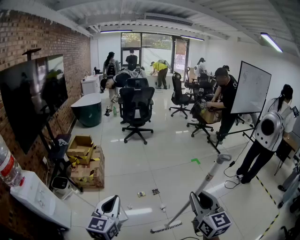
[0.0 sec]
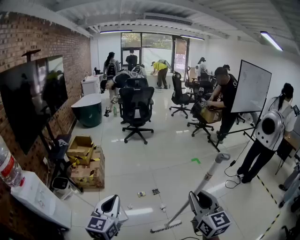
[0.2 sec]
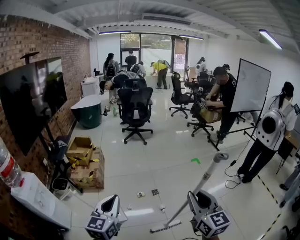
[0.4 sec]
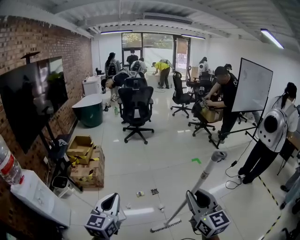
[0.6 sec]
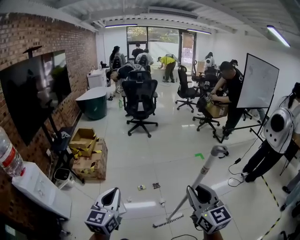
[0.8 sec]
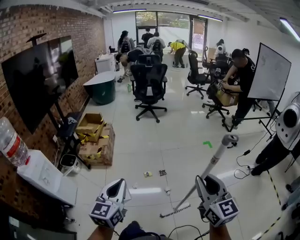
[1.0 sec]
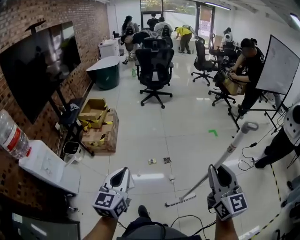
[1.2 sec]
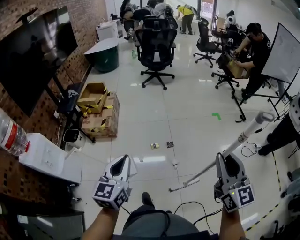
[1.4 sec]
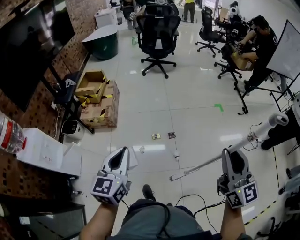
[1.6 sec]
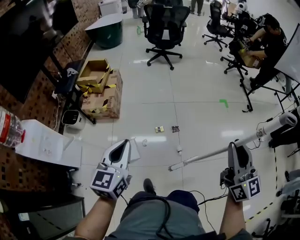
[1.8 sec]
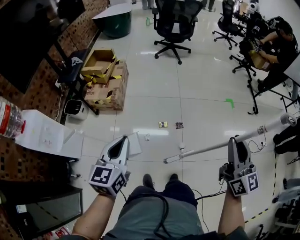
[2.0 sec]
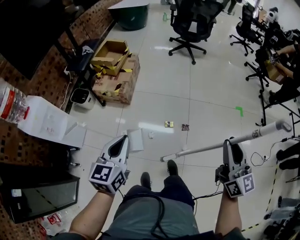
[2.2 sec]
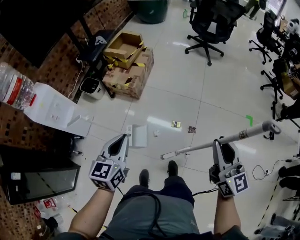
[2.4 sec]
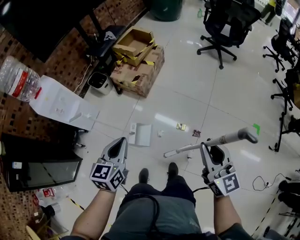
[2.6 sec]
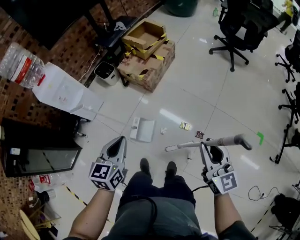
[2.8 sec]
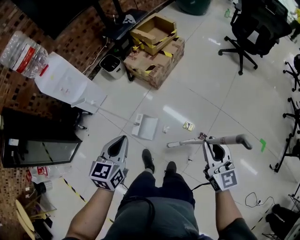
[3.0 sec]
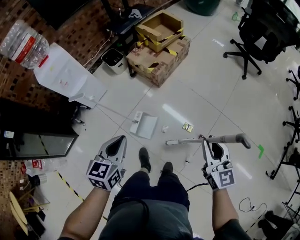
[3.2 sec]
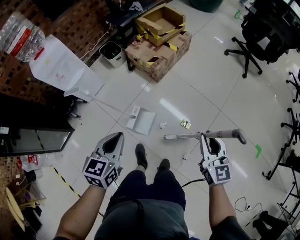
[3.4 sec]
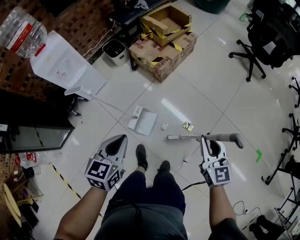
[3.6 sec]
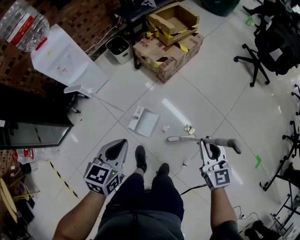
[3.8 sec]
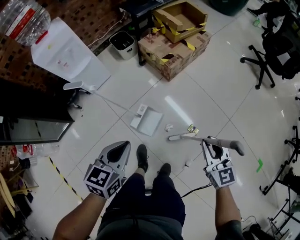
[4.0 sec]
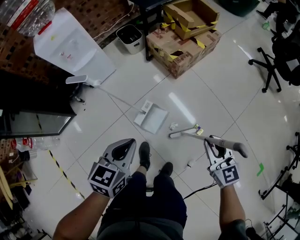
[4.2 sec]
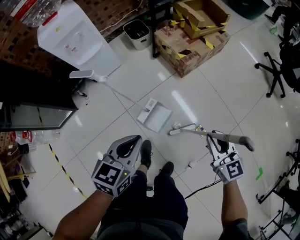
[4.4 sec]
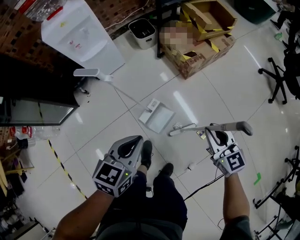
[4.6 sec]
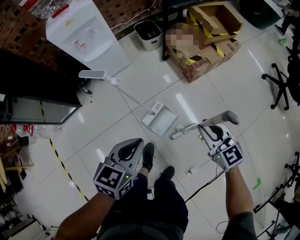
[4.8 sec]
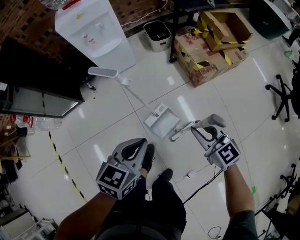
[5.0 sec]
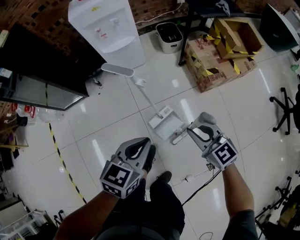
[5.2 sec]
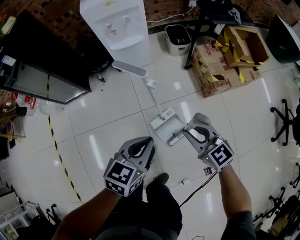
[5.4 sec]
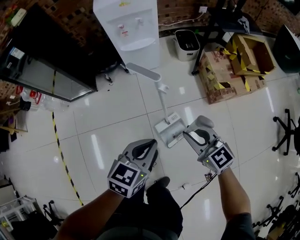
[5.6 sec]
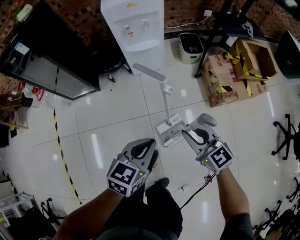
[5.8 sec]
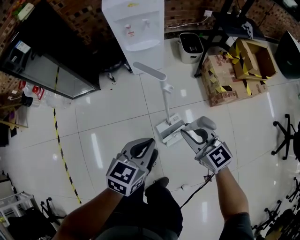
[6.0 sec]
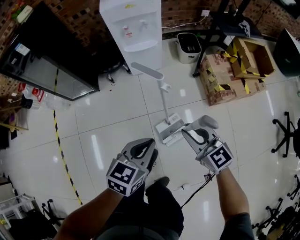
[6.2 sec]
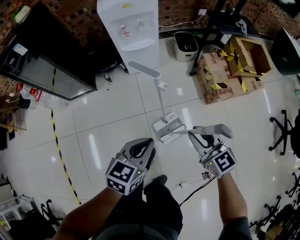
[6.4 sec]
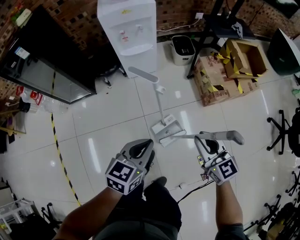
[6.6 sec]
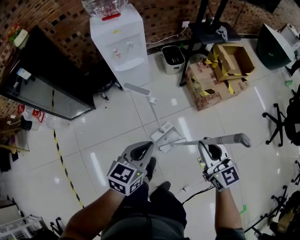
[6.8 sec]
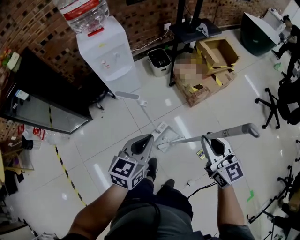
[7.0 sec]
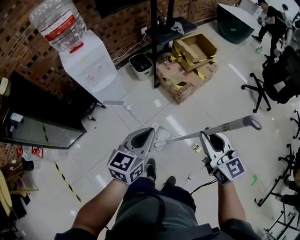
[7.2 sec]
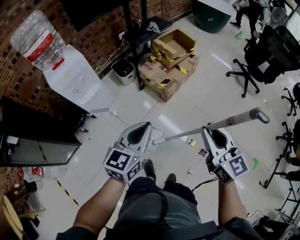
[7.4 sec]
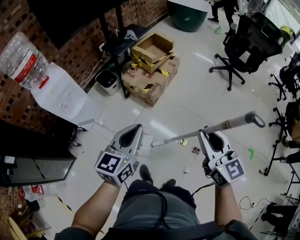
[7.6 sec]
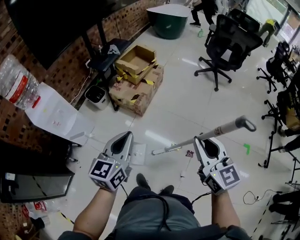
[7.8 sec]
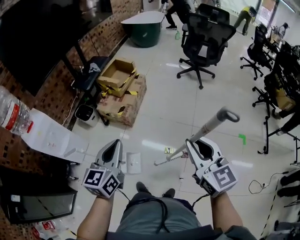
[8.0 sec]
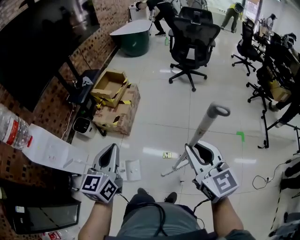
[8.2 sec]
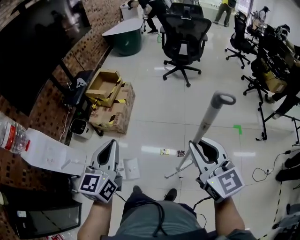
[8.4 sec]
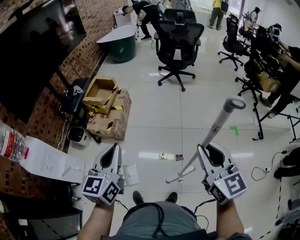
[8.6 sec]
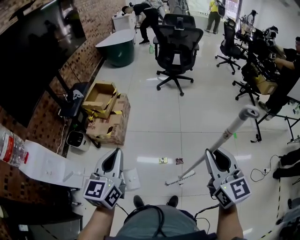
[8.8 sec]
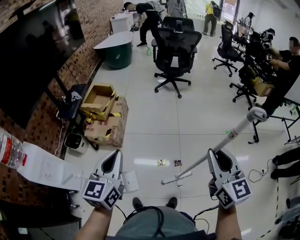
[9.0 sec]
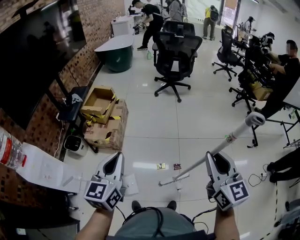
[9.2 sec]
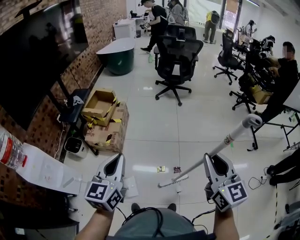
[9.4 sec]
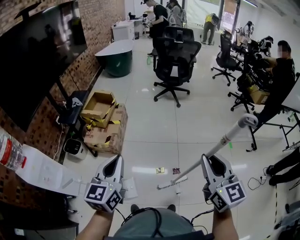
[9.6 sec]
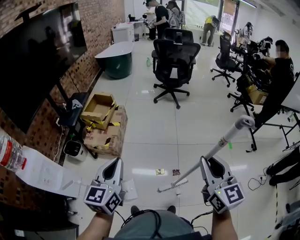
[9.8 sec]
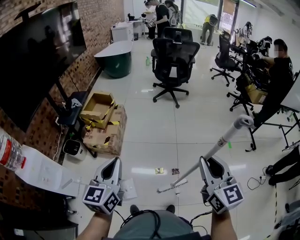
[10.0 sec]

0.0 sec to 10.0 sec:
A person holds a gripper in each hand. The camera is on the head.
0.0 sec to 1.4 sec: The right gripper is displaced forward and to the right by some 15 cm, while the left gripper is displaced forward, downward and to the right by about 15 cm.
1.4 sec to 2.8 sec: The right gripper moves roughly 60 cm, and swivels approximately 50 degrees; the left gripper ends up approximately 35 cm from where it was, and changes its angle by about 40 degrees.
2.8 sec to 4.2 sec: The left gripper is displaced downward, to the left and forward by some 25 cm. Meanwhile the right gripper moves downward, forward and to the left, some 35 cm, and rotates some 30 degrees.
4.2 sec to 5.8 sec: The right gripper changes place by some 40 cm, and turns by about 50 degrees. The left gripper moves about 20 cm, and turns by roughly 20 degrees.
5.8 sec to 7.2 sec: Both grippers travel together upward, some 30 cm. The left gripper changes its angle by approximately 30 degrees; the right gripper changes its angle by some 50 degrees.
7.2 sec to 8.6 sec: The right gripper changes place by roughly 50 cm, and turns by approximately 50 degrees; the left gripper ends up approximately 40 cm from where it was, and swivels about 30 degrees.
8.6 sec to 10.0 sec: The right gripper moves about 5 cm; the left gripper heads to the left, covering roughly 5 cm.

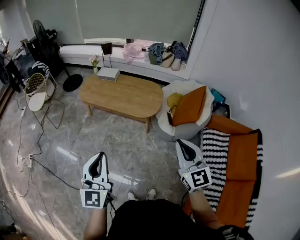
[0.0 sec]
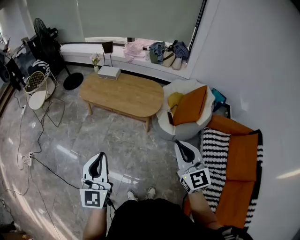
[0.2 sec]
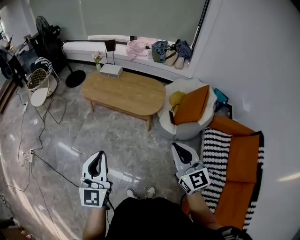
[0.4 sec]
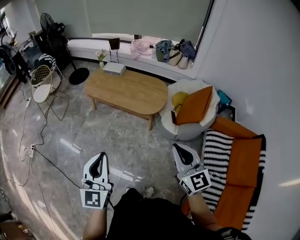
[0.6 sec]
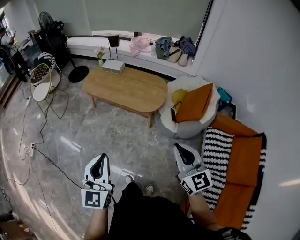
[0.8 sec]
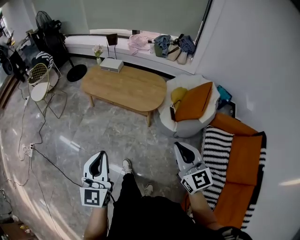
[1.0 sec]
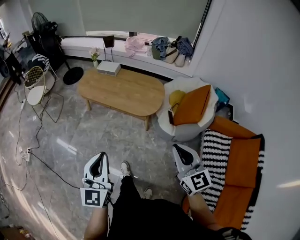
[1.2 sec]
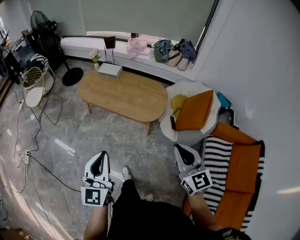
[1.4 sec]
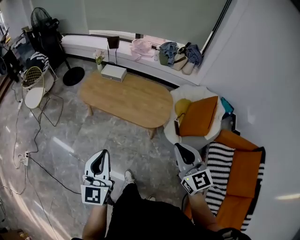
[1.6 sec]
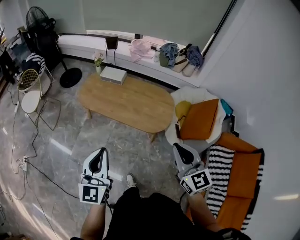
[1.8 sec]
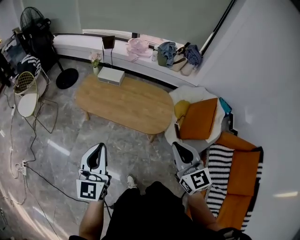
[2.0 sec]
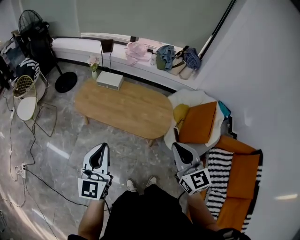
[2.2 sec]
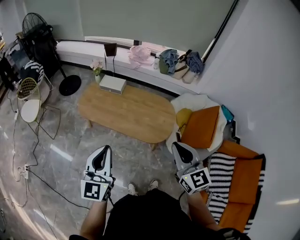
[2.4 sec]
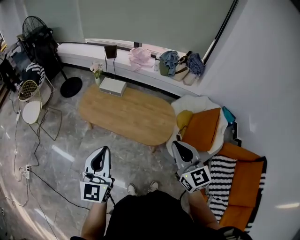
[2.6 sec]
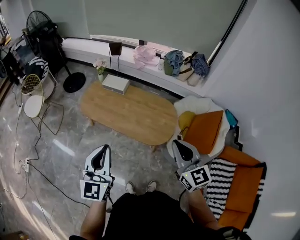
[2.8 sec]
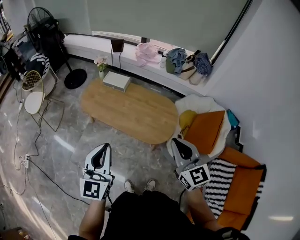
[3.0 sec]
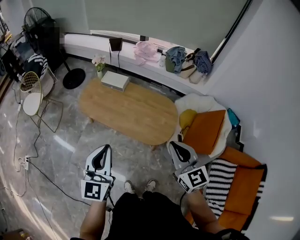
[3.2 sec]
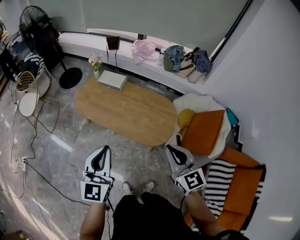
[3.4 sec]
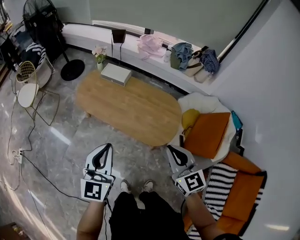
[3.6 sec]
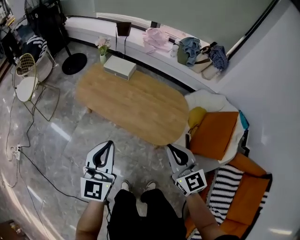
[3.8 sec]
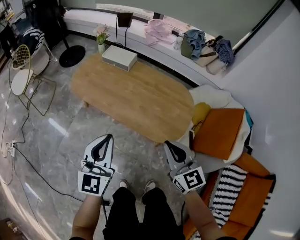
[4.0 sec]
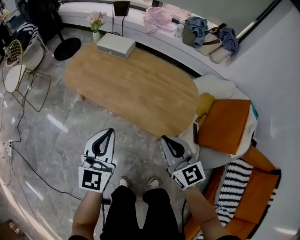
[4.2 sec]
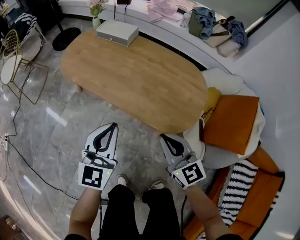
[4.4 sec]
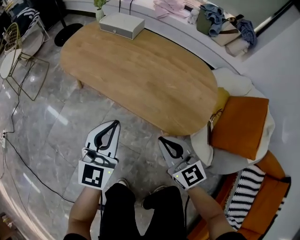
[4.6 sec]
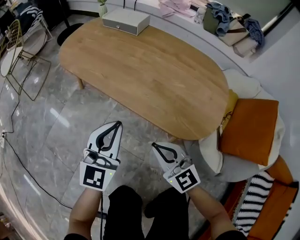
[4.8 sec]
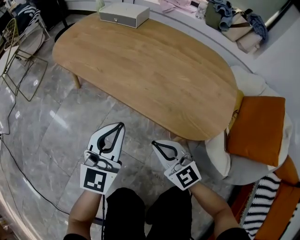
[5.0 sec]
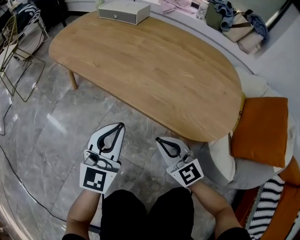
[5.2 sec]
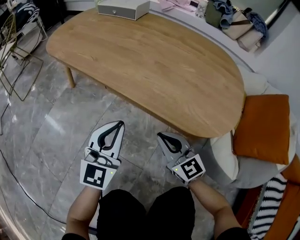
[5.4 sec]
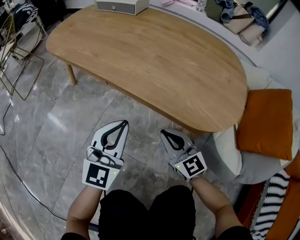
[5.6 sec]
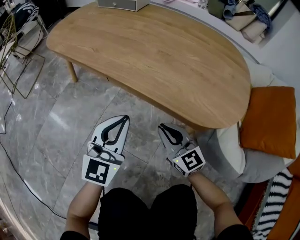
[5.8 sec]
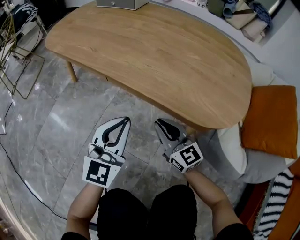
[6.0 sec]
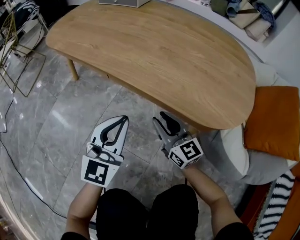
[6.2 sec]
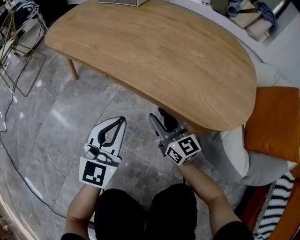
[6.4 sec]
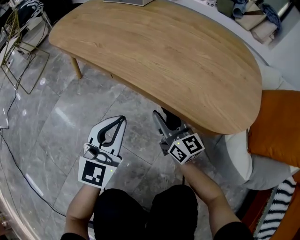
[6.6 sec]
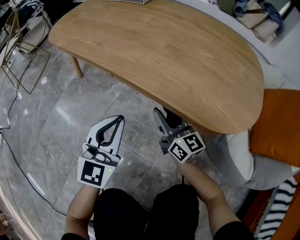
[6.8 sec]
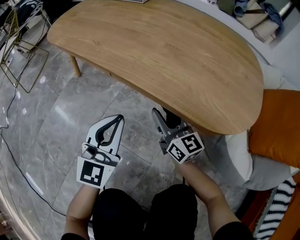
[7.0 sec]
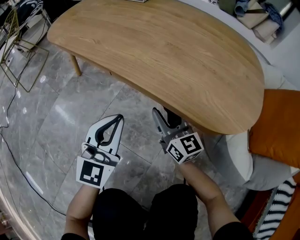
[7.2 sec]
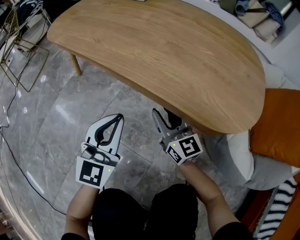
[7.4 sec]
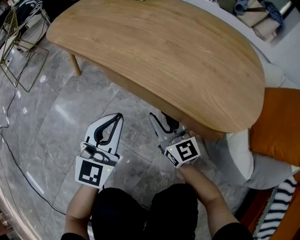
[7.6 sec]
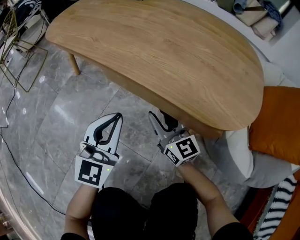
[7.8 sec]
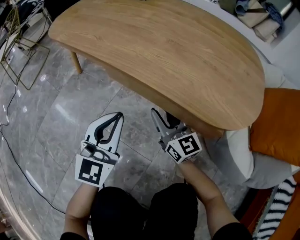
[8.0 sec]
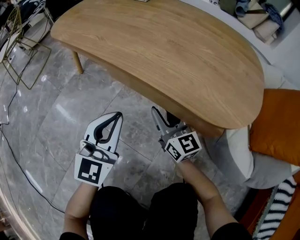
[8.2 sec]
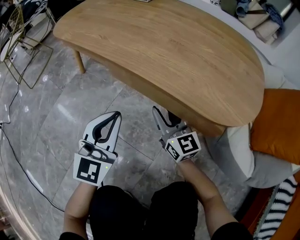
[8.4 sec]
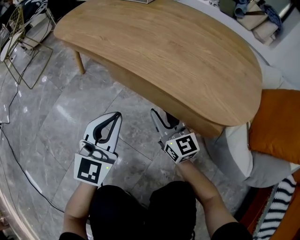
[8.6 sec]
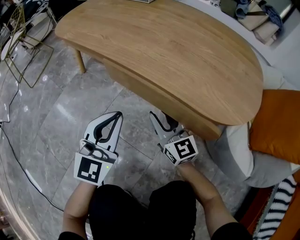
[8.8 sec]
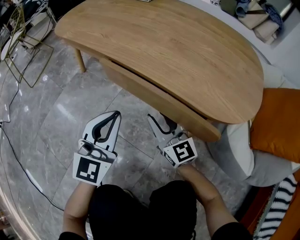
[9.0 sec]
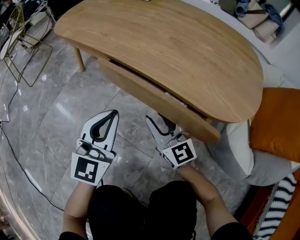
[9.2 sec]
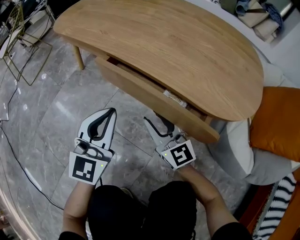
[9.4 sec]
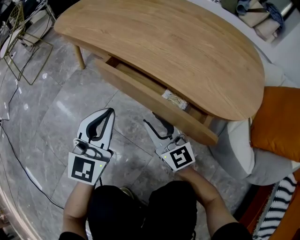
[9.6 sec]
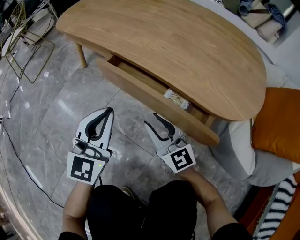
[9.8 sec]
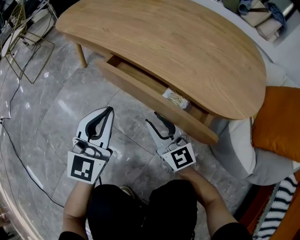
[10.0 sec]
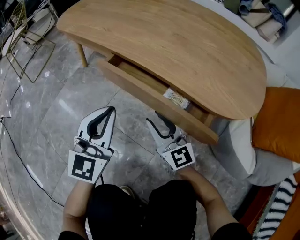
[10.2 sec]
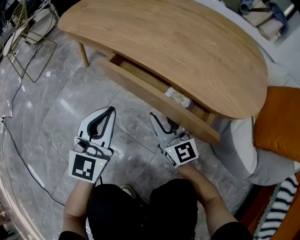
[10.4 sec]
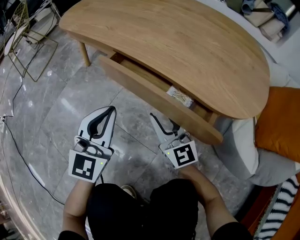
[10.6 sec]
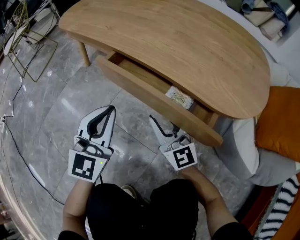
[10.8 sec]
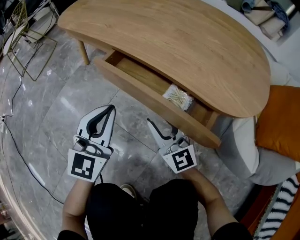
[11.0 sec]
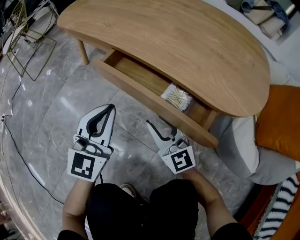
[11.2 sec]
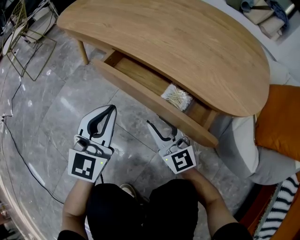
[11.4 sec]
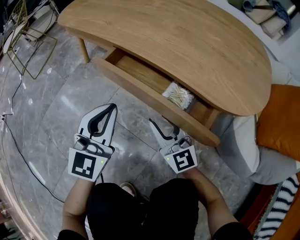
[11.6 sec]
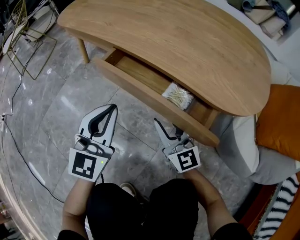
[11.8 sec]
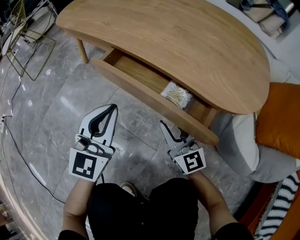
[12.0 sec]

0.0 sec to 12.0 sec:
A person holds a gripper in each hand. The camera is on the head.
0.0 sec to 1.6 sec: Both grippers travel together forward, about 15 cm.
1.6 sec to 3.0 sec: Both grippers travel together forward, roughly 15 cm.
3.0 sec to 4.4 sec: The two grippers go roughly 40 cm downward.
4.4 sec to 6.0 sec: The two grippers go some 30 cm downward.
6.0 sec to 7.6 sec: The right gripper opens.
7.6 sec to 9.0 sec: There are only small adjustments of the grippers.
9.0 sec to 12.0 sec: The grippers make only small movements.

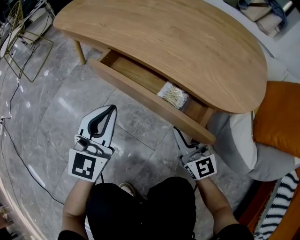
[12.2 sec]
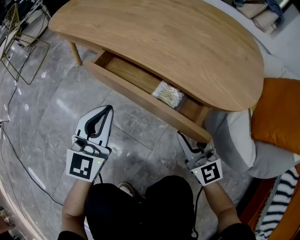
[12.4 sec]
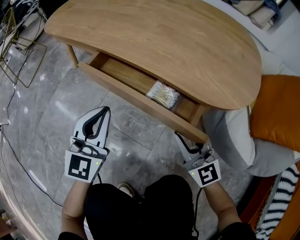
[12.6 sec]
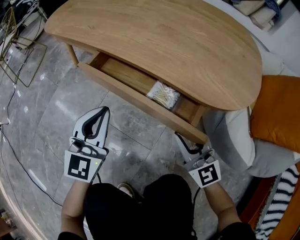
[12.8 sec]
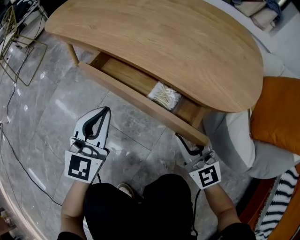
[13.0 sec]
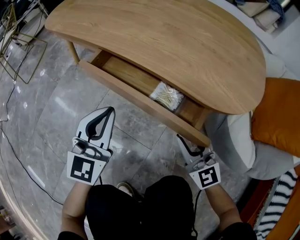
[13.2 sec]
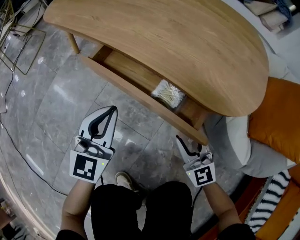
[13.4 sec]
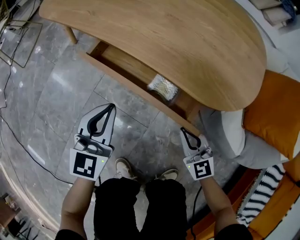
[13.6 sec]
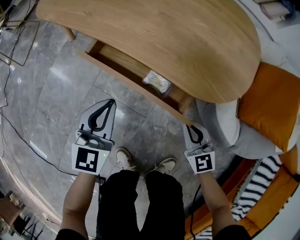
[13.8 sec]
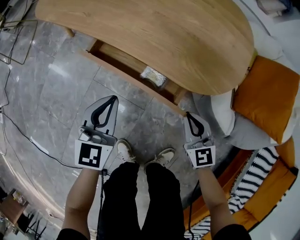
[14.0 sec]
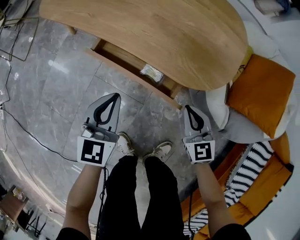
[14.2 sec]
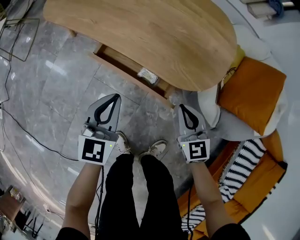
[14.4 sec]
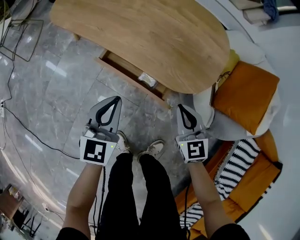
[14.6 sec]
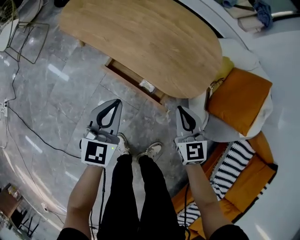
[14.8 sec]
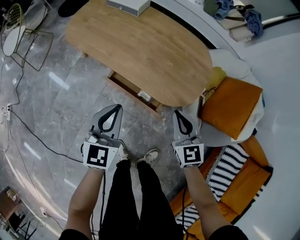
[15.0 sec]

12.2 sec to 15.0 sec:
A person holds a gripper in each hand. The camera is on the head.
12.2 sec to 13.6 sec: The right gripper moves roughly 5 cm, and closes its fingers.
13.6 sec to 15.0 sec: The two grippers go some 35 cm upward.
